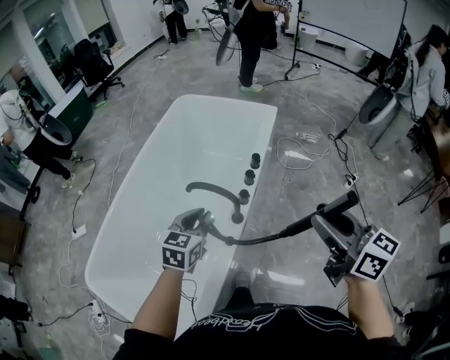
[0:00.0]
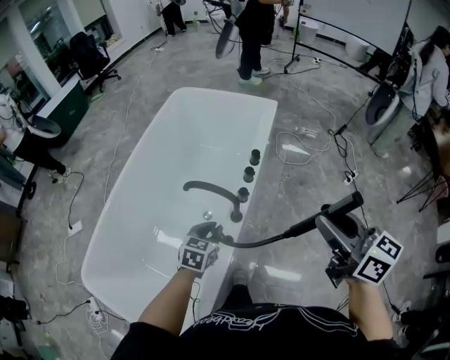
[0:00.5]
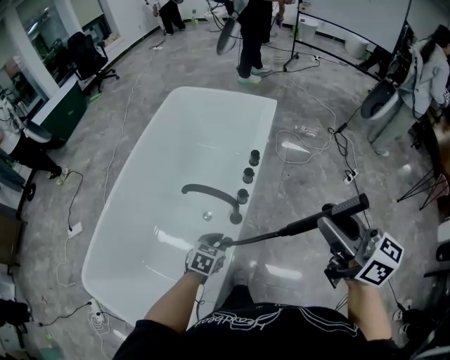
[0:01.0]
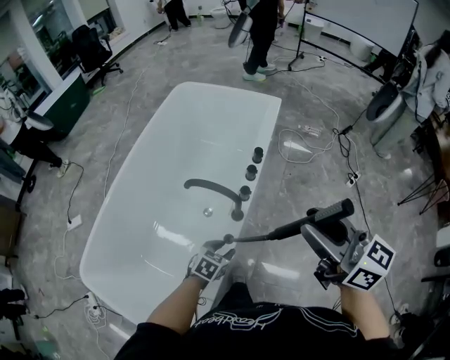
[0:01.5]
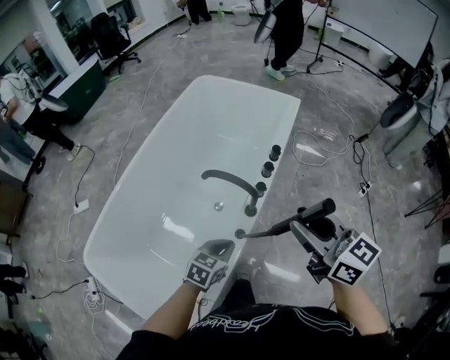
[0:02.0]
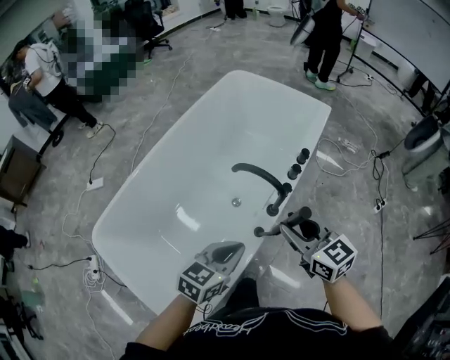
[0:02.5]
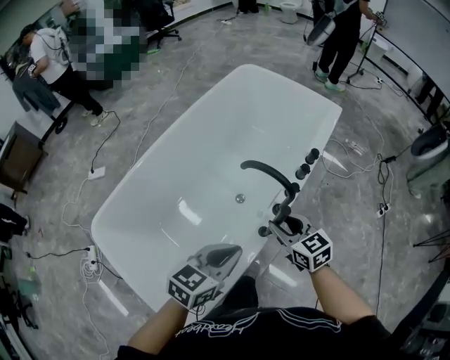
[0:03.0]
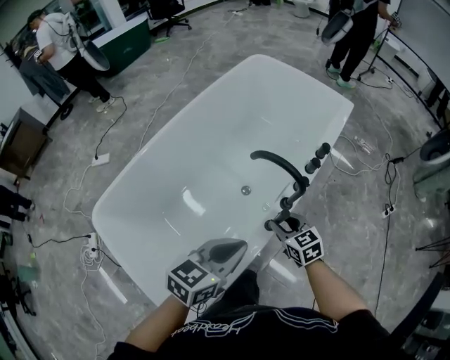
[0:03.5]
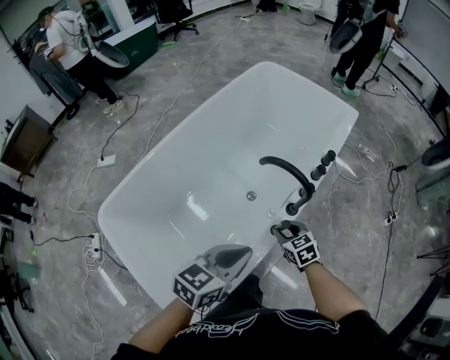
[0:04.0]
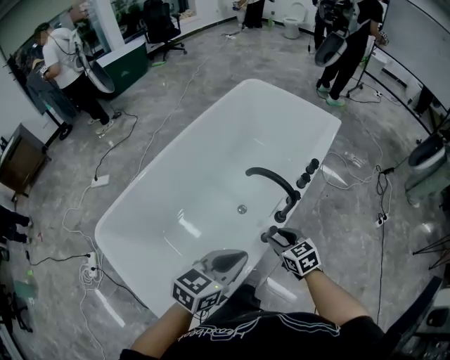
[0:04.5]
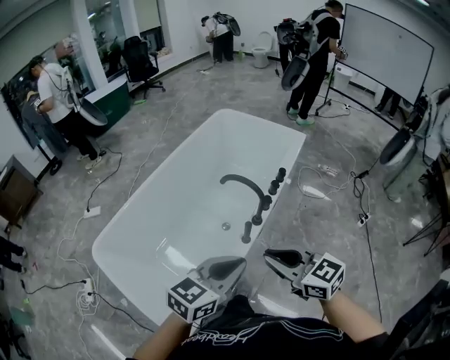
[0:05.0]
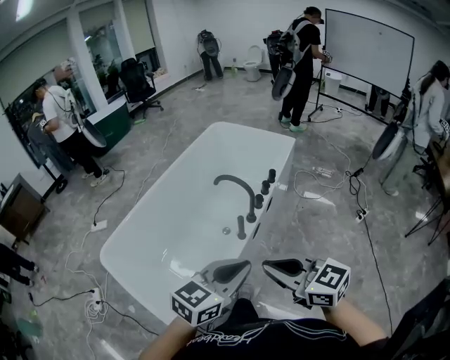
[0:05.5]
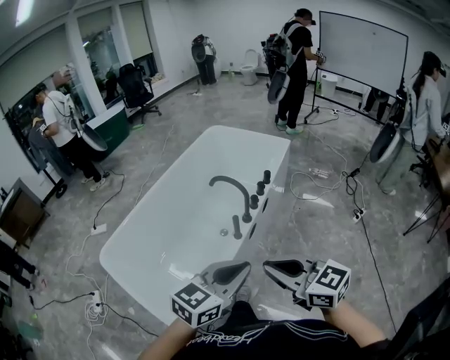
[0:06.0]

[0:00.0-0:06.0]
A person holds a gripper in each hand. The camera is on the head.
0:00.0 to 0:02.0: The left gripper travels downward and backward by roughly 15 cm; the right gripper travels to the left by about 10 cm.
0:02.0 to 0:04.0: The left gripper is displaced upward and to the left by about 15 cm. Meanwhile the right gripper heads downward, covering about 35 cm, and tips its fingers downward by some 40 degrees.
0:04.0 to 0:06.0: The right gripper shifts approximately 50 cm upward and backward, tips its fingers upward by roughly 40 degrees, and closes, while the left gripper moves backward, upward and to the right, approximately 25 cm, and turns by approximately 20 degrees.

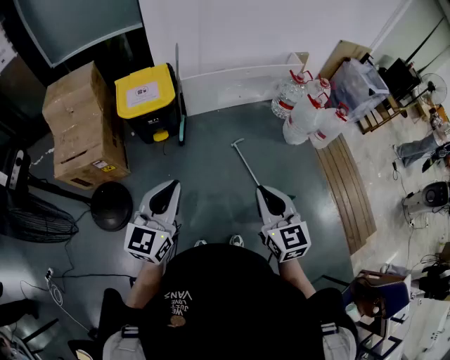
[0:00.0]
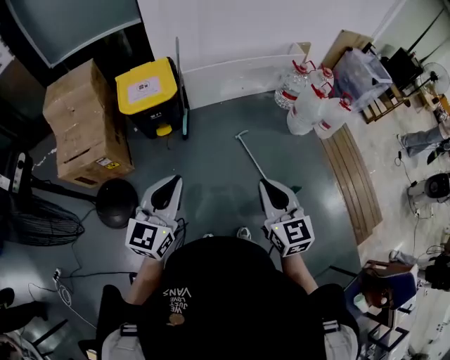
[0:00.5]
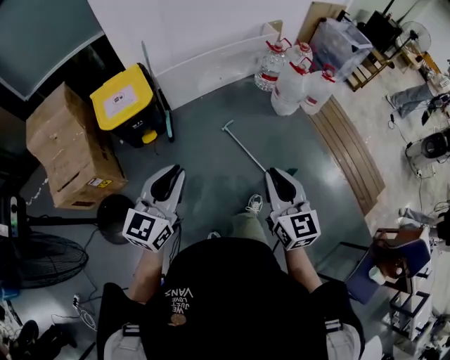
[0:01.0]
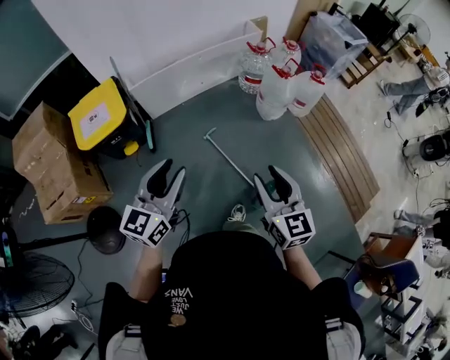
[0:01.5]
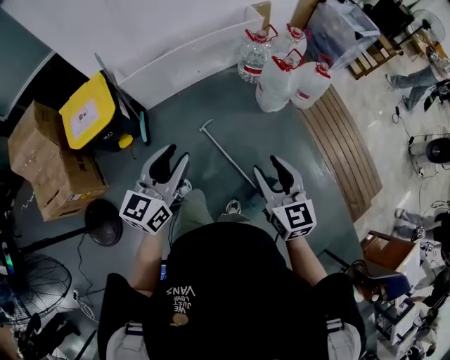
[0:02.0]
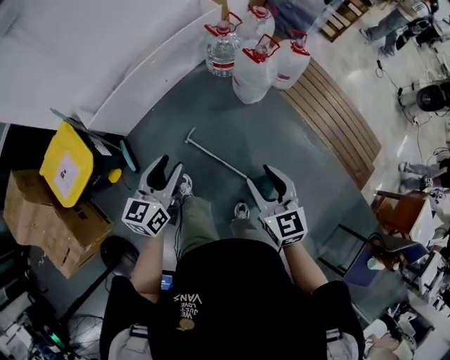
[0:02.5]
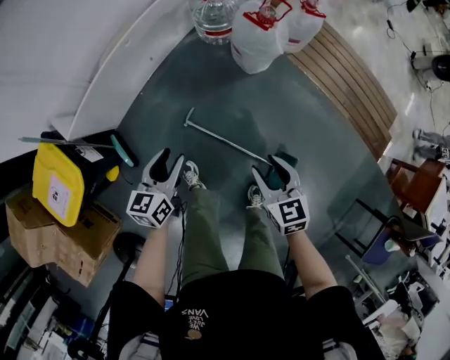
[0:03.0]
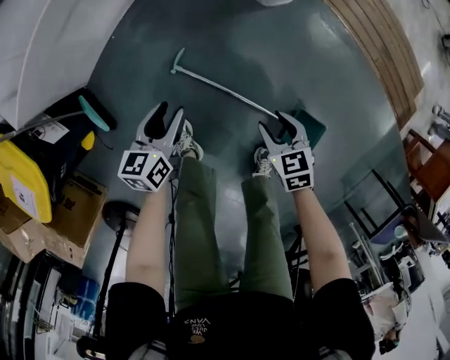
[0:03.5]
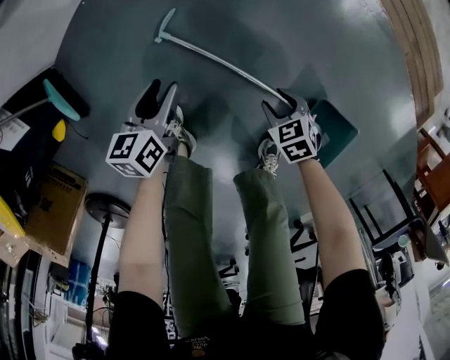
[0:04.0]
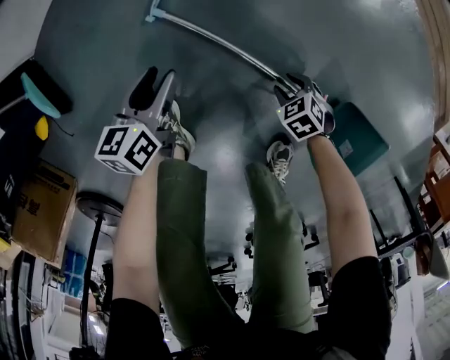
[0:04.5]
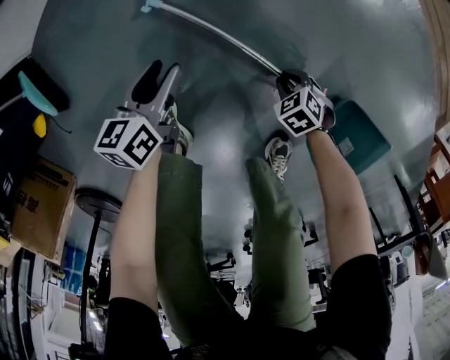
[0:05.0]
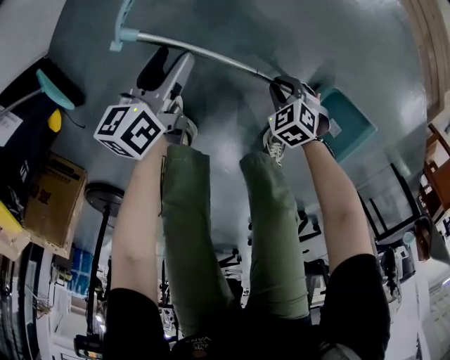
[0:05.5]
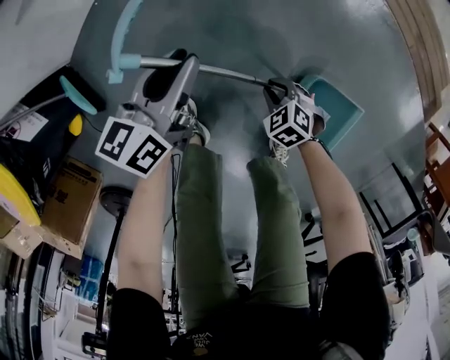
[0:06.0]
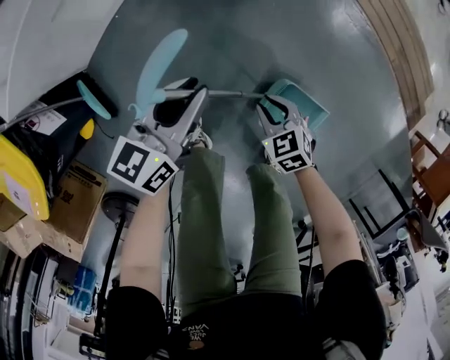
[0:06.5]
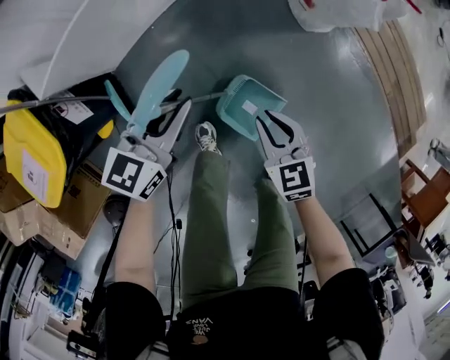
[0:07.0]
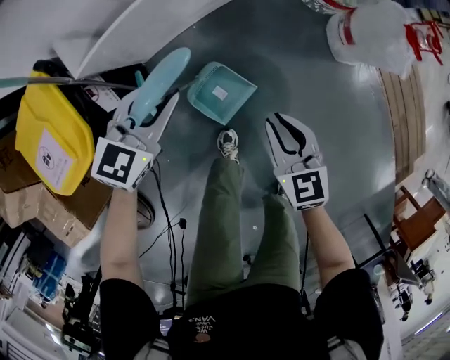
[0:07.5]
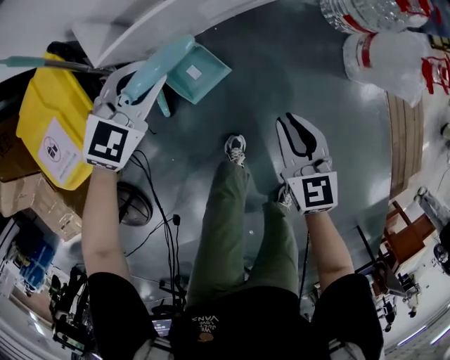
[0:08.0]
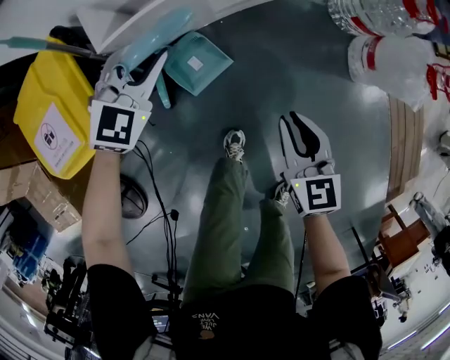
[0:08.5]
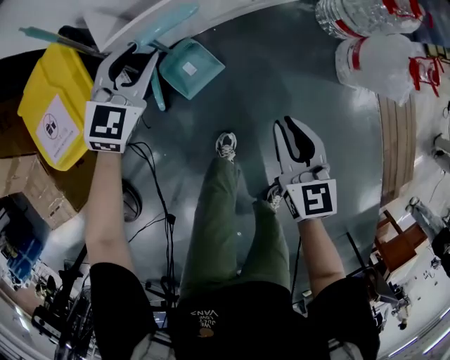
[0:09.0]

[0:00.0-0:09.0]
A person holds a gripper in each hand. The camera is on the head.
0:00.0 to 0:02.0: The two grippers go about 35 cm forward and to the right. The right gripper opens its fingers, while the left gripper swivels roughly 20 degrees, and opens.
0:02.0 to 0:04.5: Both grippers move downward, about 80 cm. The left gripper tips its fingers downward by roughly 30 degrees. Meanwhile the right gripper angles its fingers downward, by about 60 degrees.
0:04.5 to 0:07.0: The two grippers go about 40 cm upward. The right gripper tips its fingers upward by roughly 40 degrees, and closes its fingers. The left gripper rotates about 30 degrees.
0:07.0 to 0:09.0: The right gripper moves to the left, upward and forward, about 20 cm; the left gripper heads to the left and forward, covering roughly 30 cm, and turns by approximately 30 degrees.

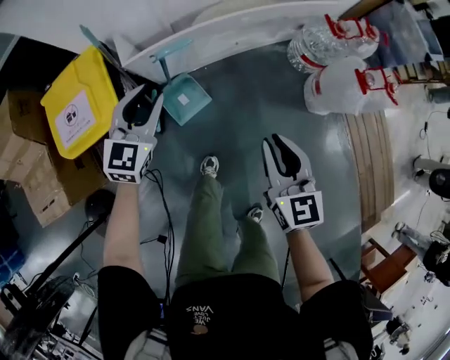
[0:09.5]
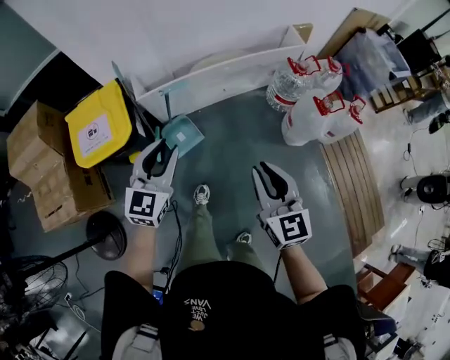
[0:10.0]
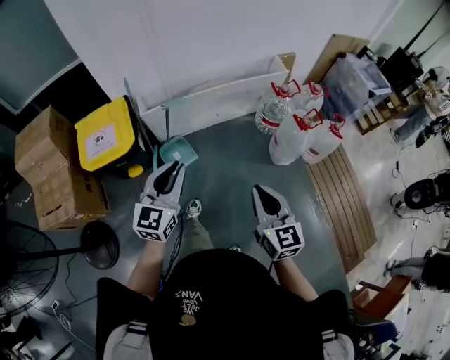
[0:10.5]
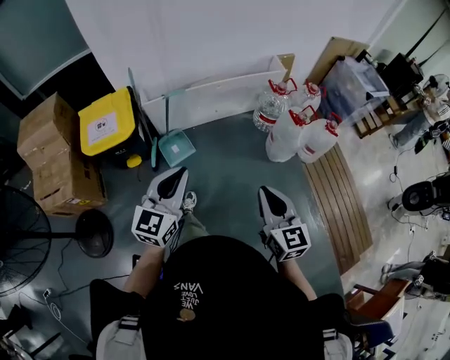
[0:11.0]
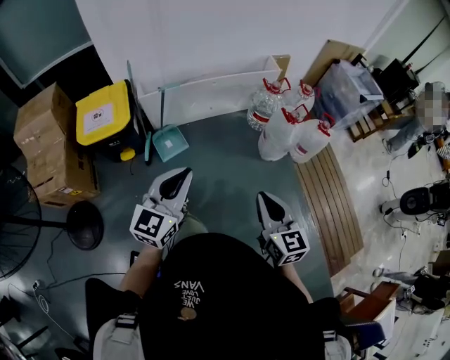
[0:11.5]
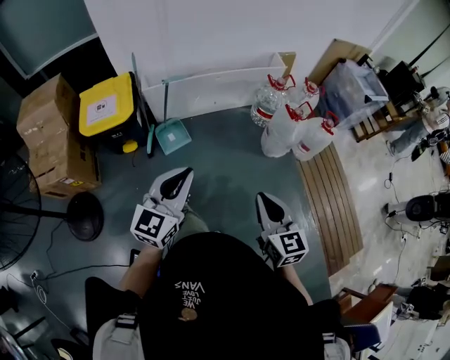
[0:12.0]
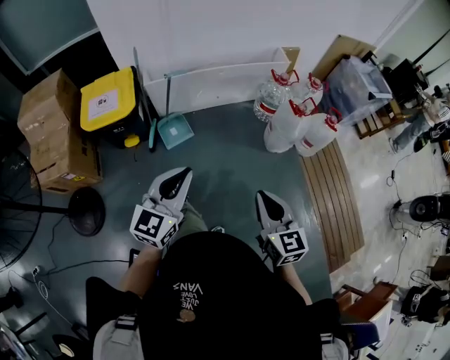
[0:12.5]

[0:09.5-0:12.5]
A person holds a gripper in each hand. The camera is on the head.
0:09.5 to 0:11.0: The grippers both shift backward, upward and to the right by about 40 cm.
0:11.0 to 0:12.5: Both grippers travel together backward, approximately 5 cm.

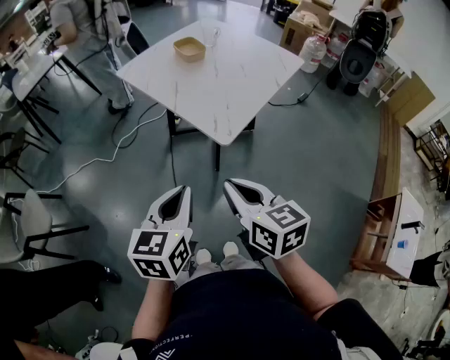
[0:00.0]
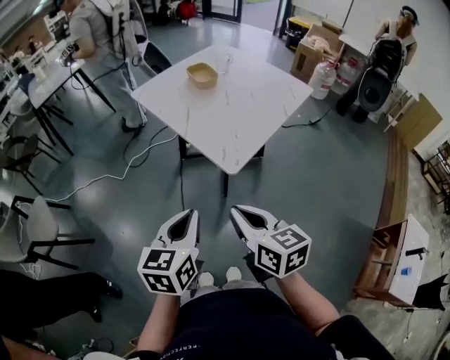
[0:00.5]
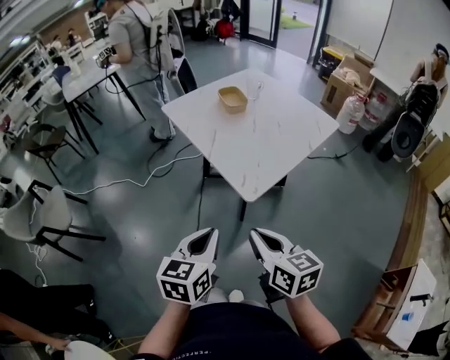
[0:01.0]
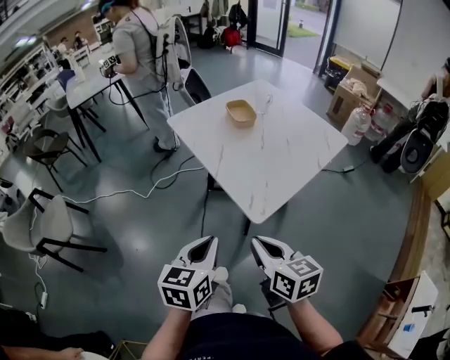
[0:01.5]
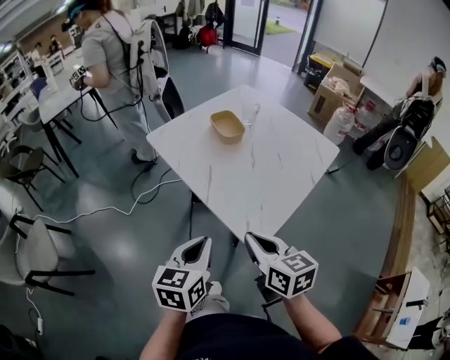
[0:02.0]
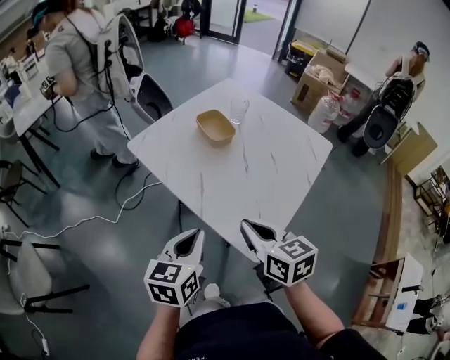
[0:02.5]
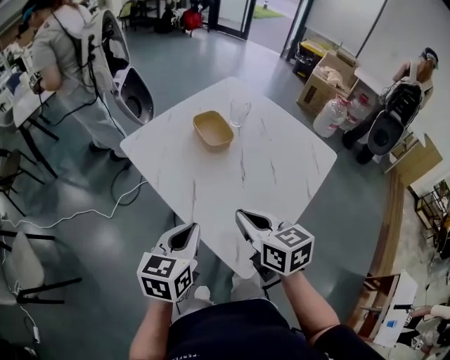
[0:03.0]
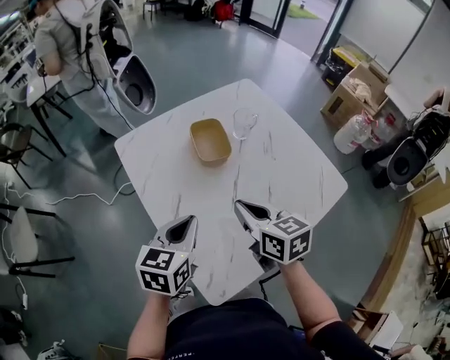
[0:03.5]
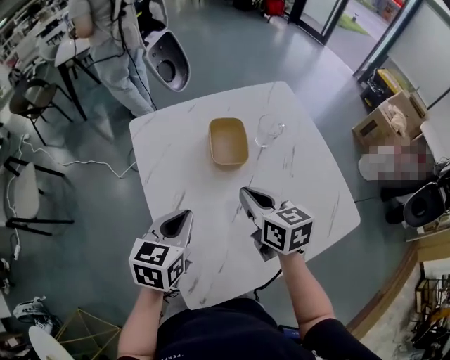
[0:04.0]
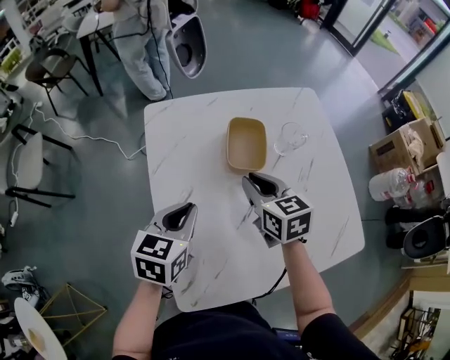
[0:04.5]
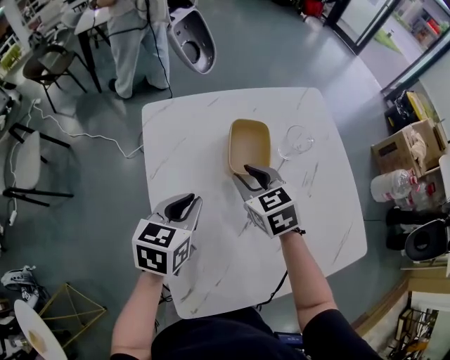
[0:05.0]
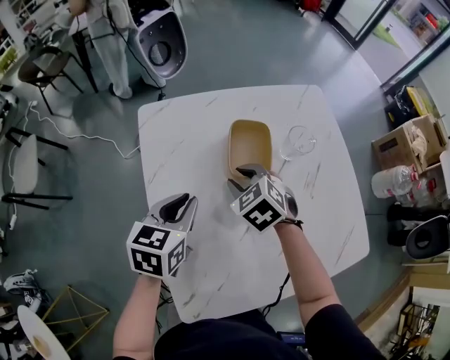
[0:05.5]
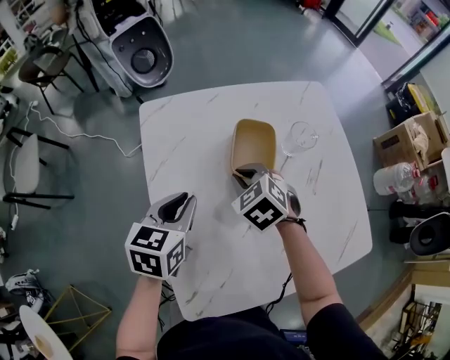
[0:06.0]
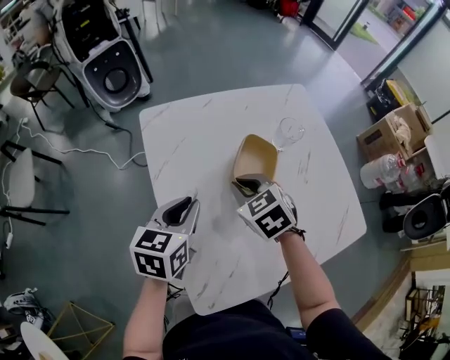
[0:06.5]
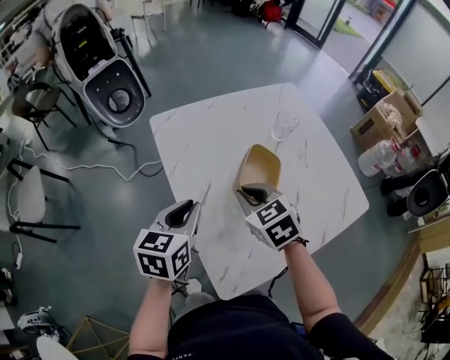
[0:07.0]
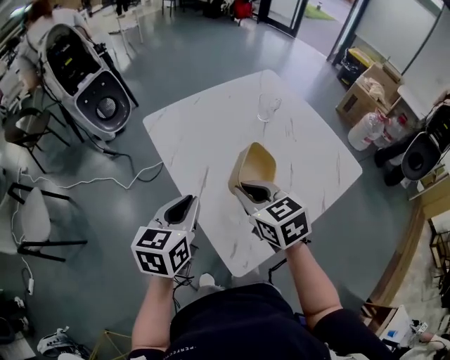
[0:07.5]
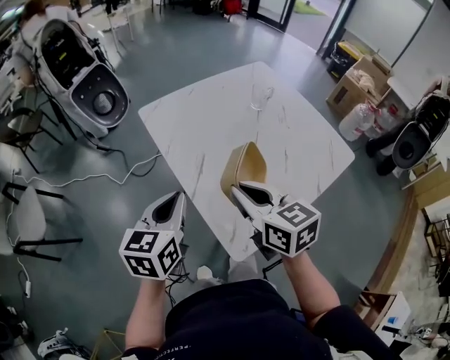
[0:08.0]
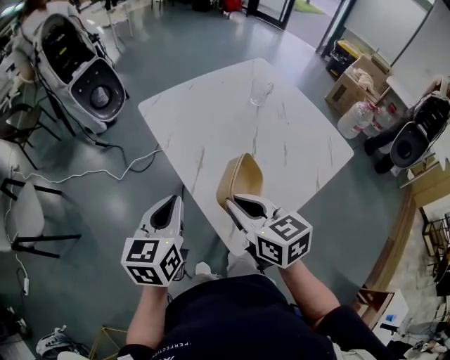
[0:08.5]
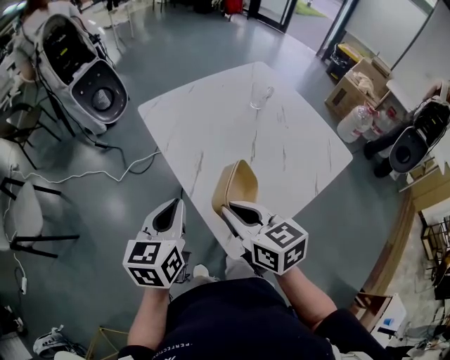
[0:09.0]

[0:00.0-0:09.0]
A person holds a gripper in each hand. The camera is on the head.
0:00.0 to 0:02.0: Both grippers travel together forward, approximately 20 cm.
0:02.0 to 0:04.5: The right gripper ends up some 40 cm from where it was, and turns by roughly 30 degrees. The left gripper ends up some 30 cm from where it was, and swivels roughly 30 degrees.
0:04.5 to 0:07.0: The right gripper goes about 15 cm backward and to the left, and rotates roughly 20 degrees. The left gripper is displaced to the left by approximately 10 cm.
0:07.0 to 0:09.0: The left gripper is displaced backward by some 10 cm, while the right gripper travels backward by about 20 cm, and swivels some 30 degrees.
